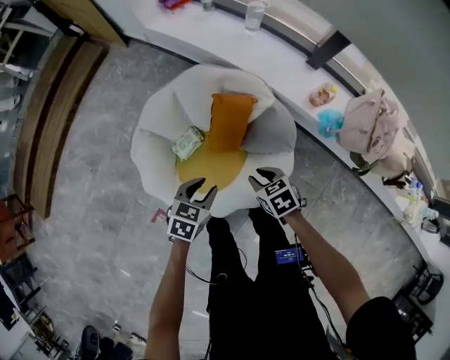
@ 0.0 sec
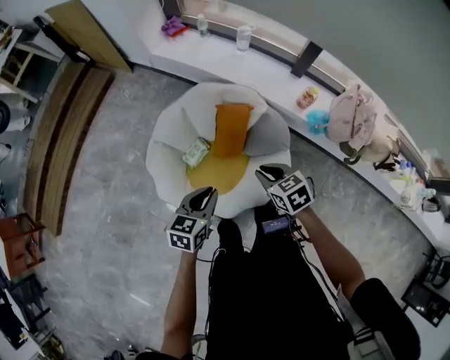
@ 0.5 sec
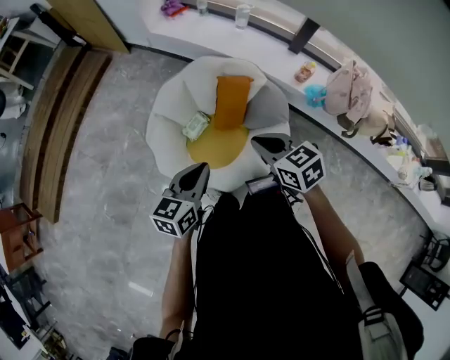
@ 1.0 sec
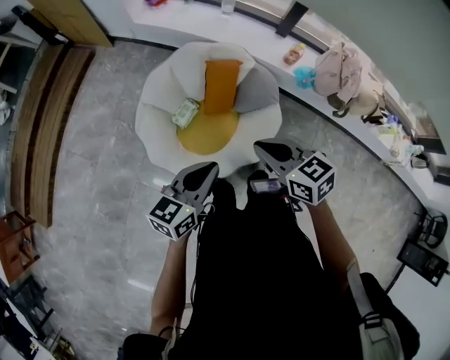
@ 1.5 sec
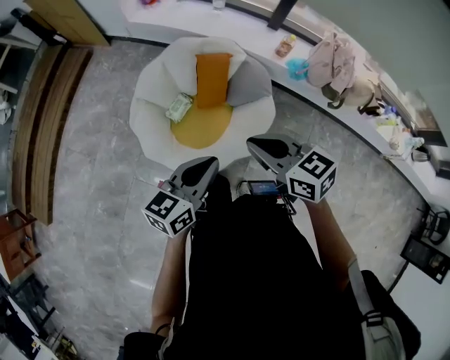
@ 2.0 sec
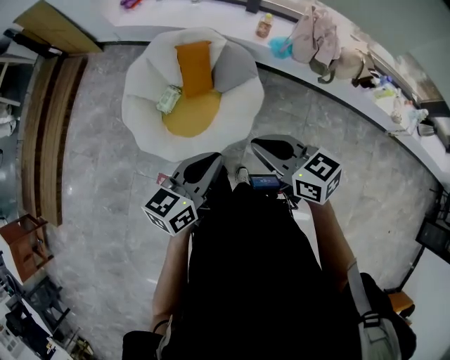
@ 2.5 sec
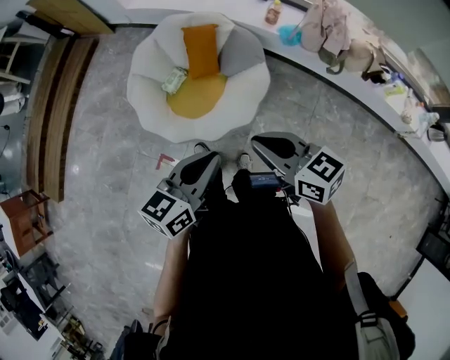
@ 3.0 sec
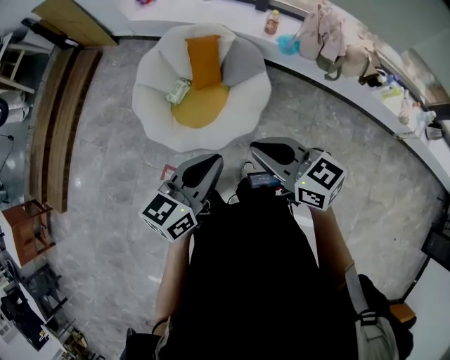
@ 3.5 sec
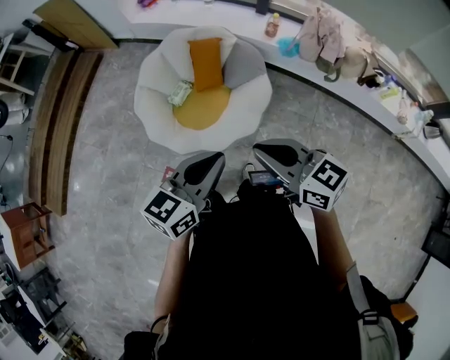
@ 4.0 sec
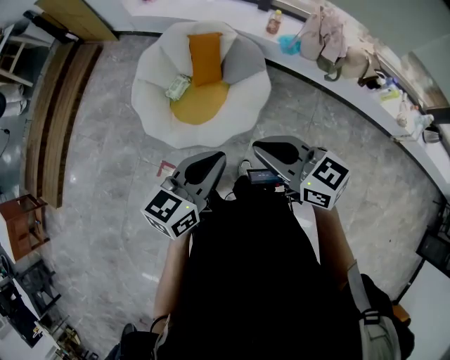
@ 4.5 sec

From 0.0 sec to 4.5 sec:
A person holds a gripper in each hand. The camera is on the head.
From 0.0 sec to 2.0 sec: The two grippers go roughly 35 cm upward and backward. The right gripper tilts its fingers about 30 degrees upward, and closes up; the left gripper tips its fingers upward by approximately 40 degrees, and closes its fingers.
From 2.0 sec to 4.5 sec: The two grippers go about 20 cm backward and to the right.

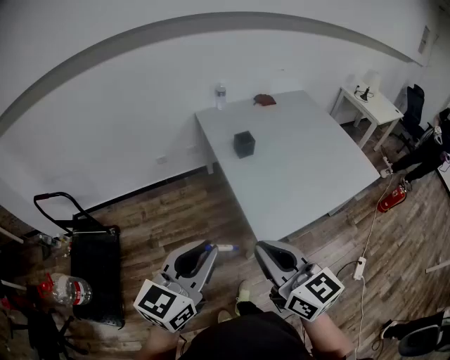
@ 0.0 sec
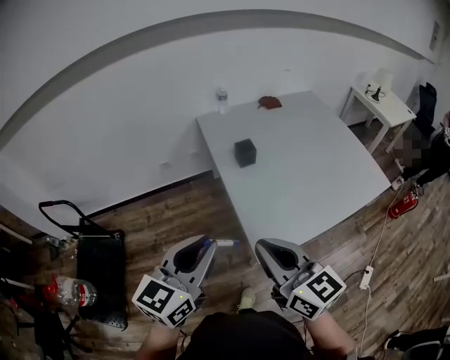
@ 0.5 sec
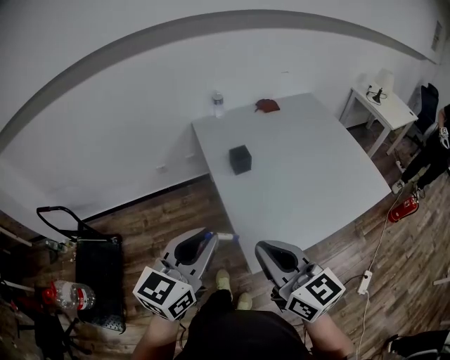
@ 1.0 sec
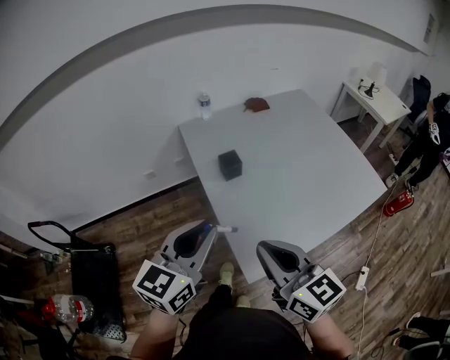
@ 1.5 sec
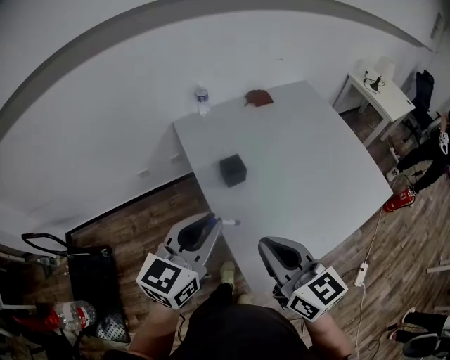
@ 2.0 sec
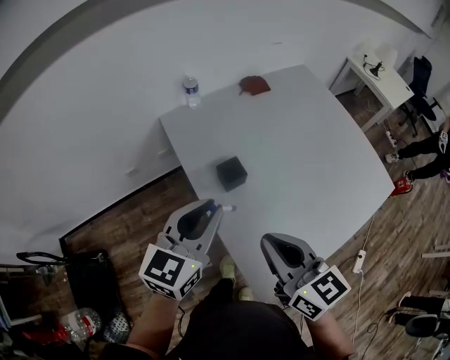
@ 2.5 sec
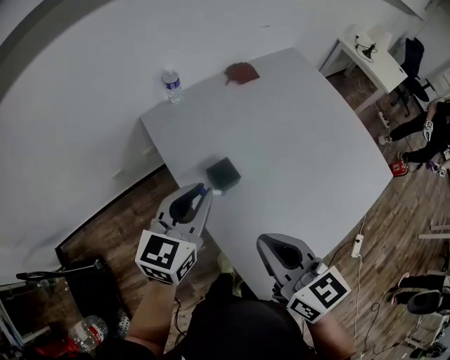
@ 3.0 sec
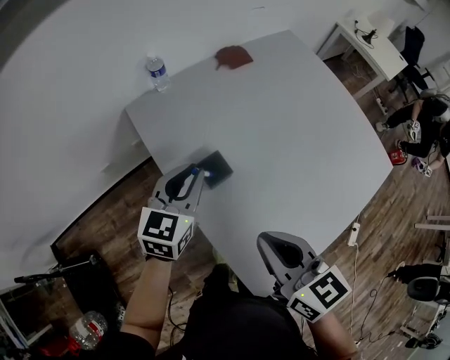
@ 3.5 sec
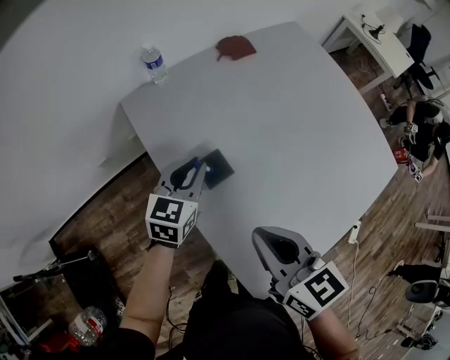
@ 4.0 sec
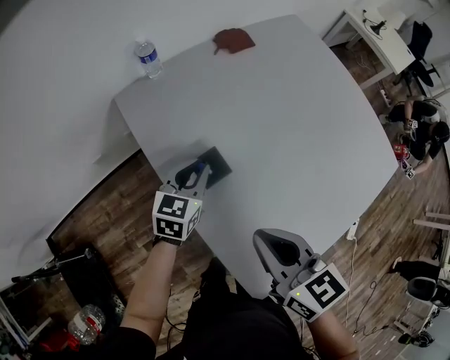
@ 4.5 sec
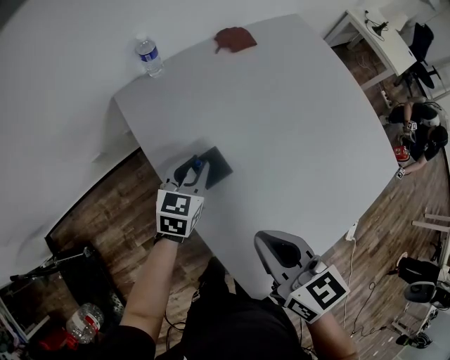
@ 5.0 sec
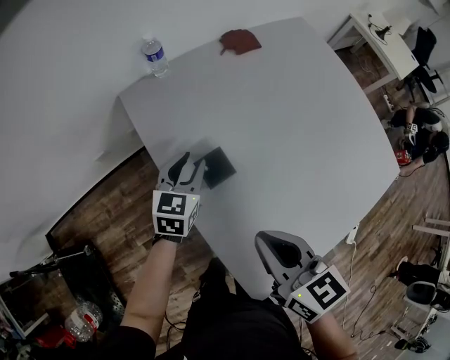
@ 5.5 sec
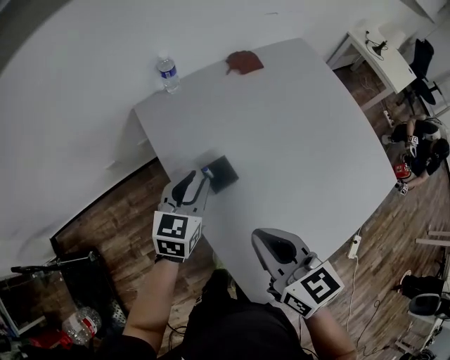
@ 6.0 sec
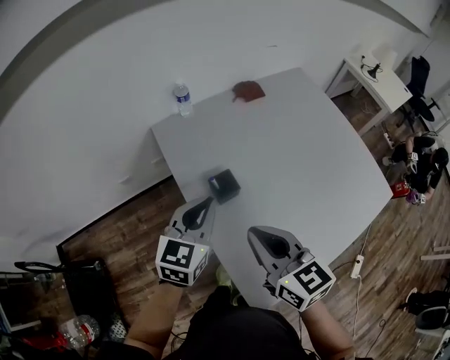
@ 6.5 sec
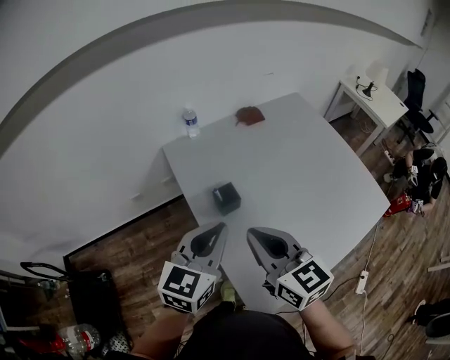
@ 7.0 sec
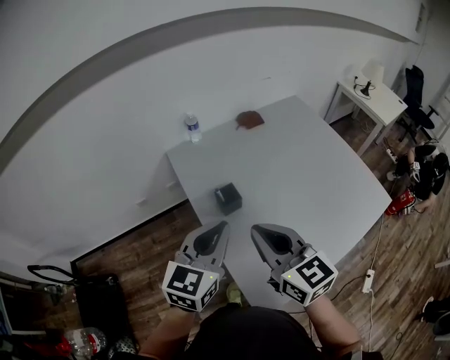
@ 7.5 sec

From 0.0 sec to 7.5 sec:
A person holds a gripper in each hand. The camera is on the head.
From 0.0 sec to 2.0 sec: Both grippers travel together forward, some 30 cm.
From 2.0 sec to 4.0 sec: The right gripper heads forward and downward, covering roughly 20 cm, while the left gripper heads forward and downward, covering about 35 cm.
From 4.0 sec to 5.5 sec: The grippers stay close to where they were, moving slightly.
From 5.5 sec to 7.5 sec: The right gripper moves upward and backward, about 15 cm, and swivels roughly 20 degrees; the left gripper shifts roughly 35 cm upward and backward, and closes up.

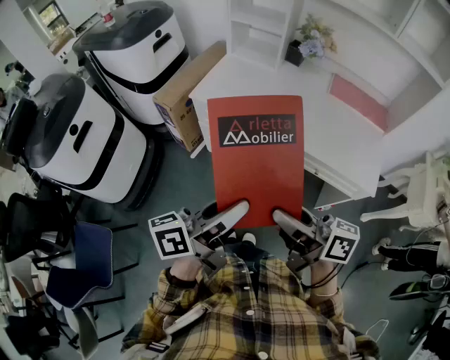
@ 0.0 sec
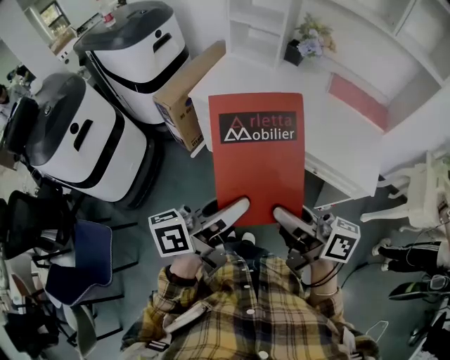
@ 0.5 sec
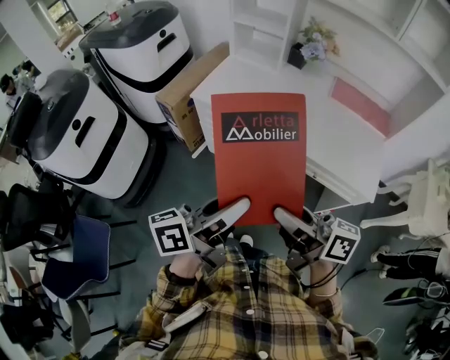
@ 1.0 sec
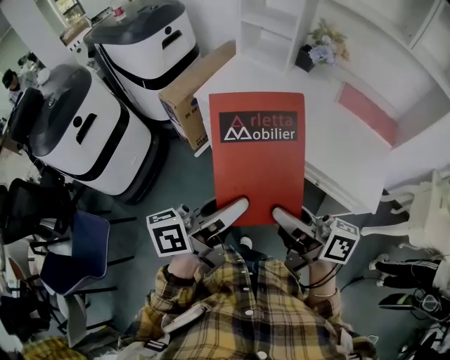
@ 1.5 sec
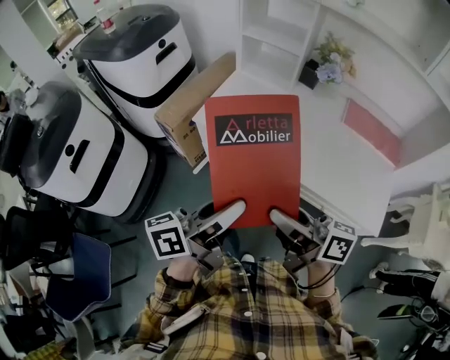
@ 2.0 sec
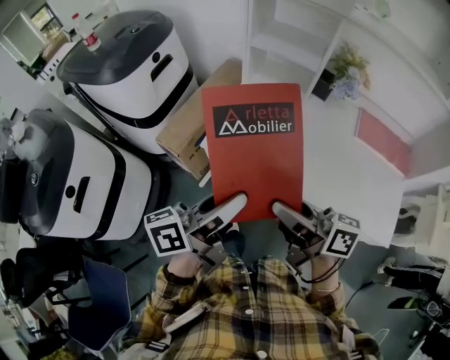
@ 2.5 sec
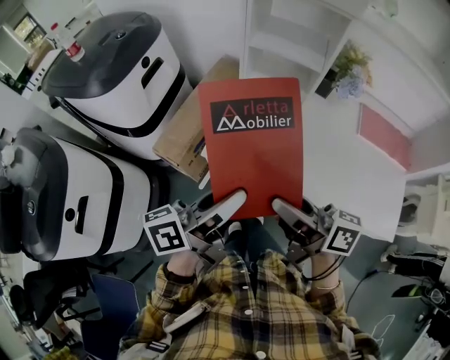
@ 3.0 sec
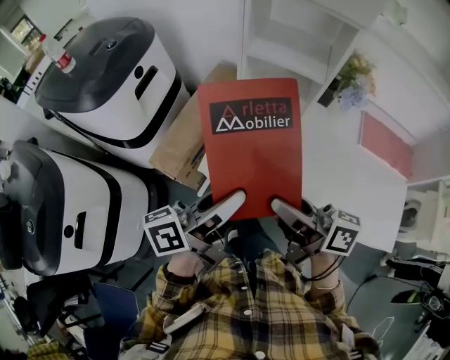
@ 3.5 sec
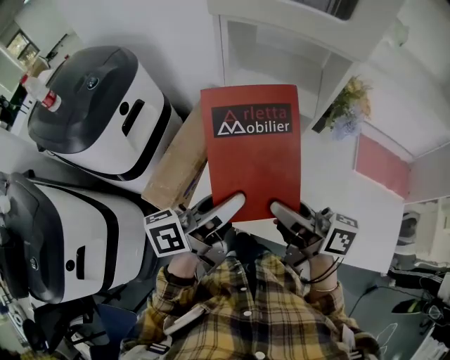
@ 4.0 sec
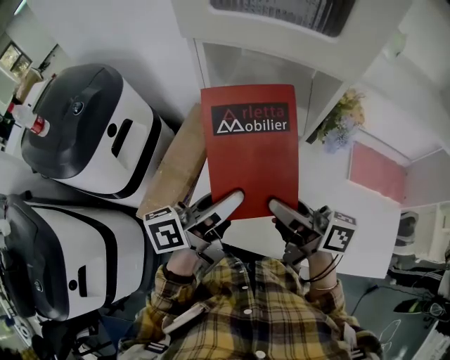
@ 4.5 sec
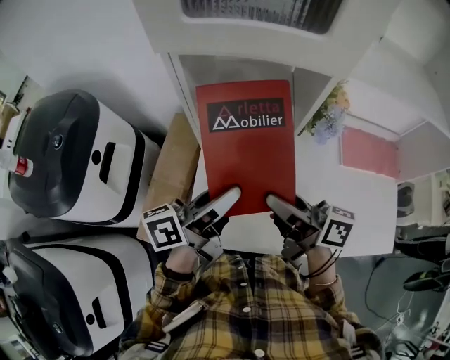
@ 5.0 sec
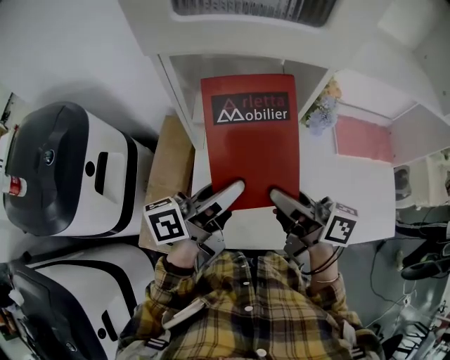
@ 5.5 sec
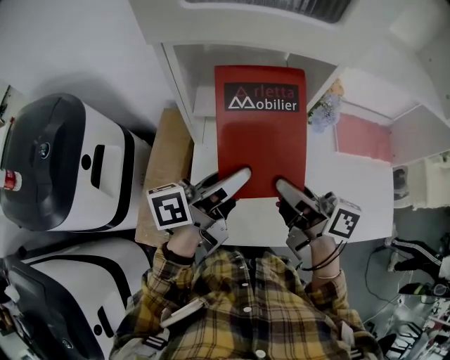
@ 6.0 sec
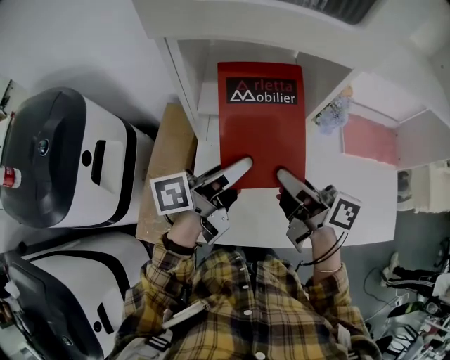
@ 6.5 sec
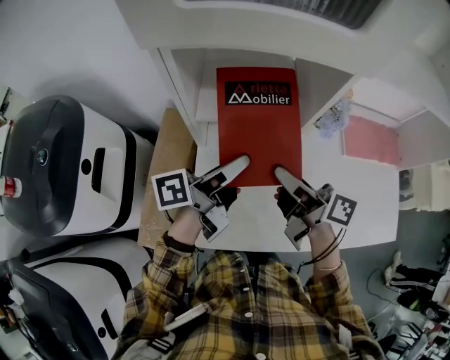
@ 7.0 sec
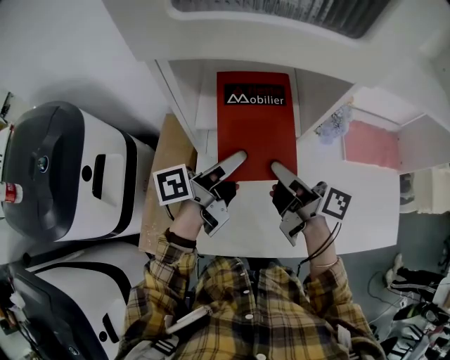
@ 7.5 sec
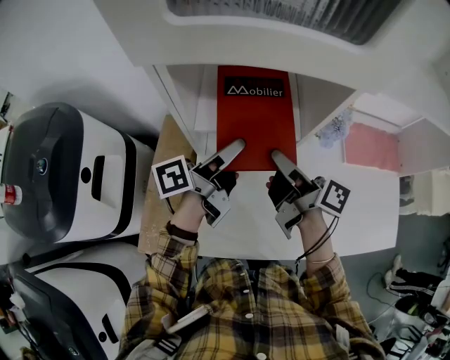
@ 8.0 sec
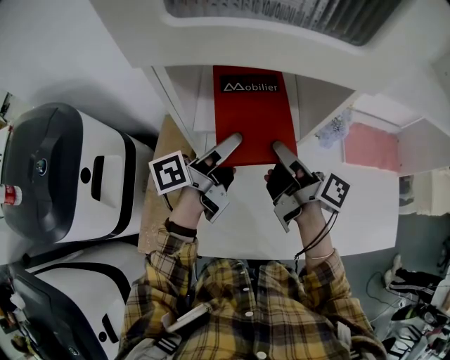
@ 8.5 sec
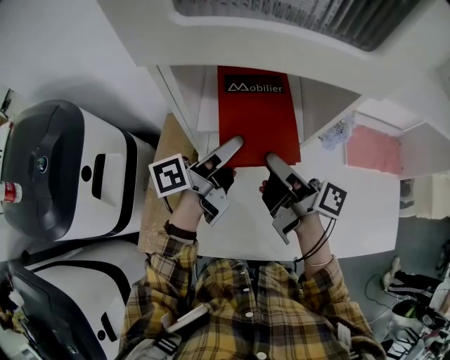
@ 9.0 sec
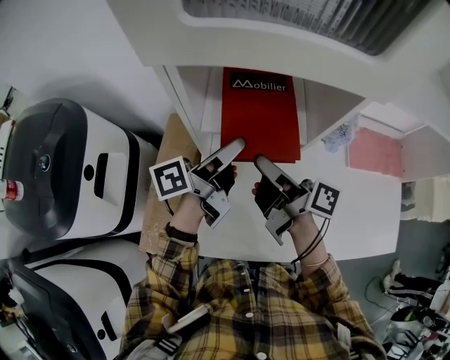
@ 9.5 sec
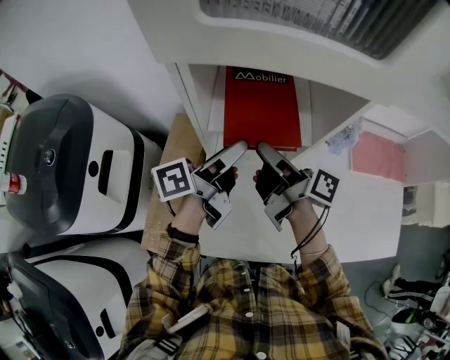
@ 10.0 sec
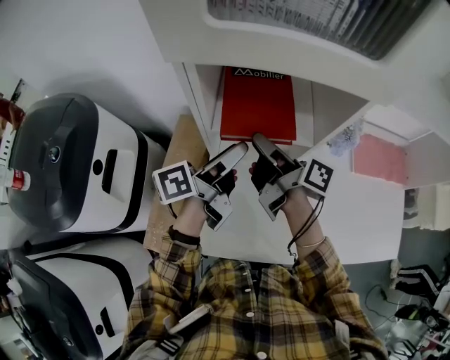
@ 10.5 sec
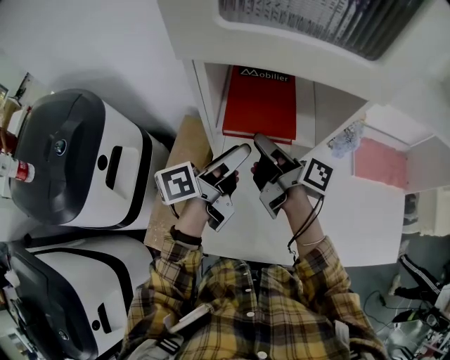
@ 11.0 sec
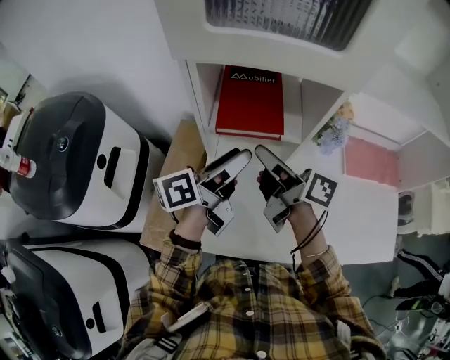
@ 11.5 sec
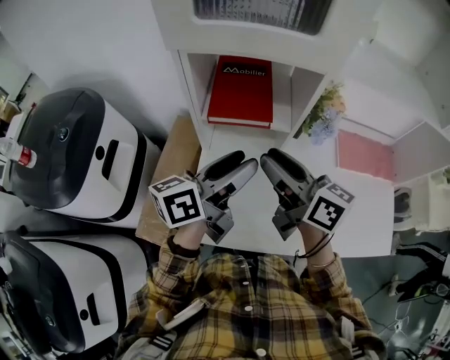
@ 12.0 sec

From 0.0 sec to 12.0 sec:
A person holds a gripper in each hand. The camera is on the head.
From 0.0 sec to 2.0 sec: The grippers both shift forward by roughly 15 cm.
From 2.0 sec to 4.0 sec: The left gripper moves forward and backward over about 20 cm, changing direction 2 times, while the right gripper goes forward and backward, approximately 20 cm each way, reversing 2 times.
From 4.0 sec to 6.0 sec: The two grippers go about 10 cm forward. The left gripper turns by approximately 20 degrees, while the right gripper swivels some 20 degrees.
From 6.0 sec to 8.0 sec: The grippers both shift forward by roughly 10 cm.
From 8.0 sec to 10.0 sec: The right gripper heads to the left, covering approximately 5 cm.
From 10.0 sec to 12.0 sec: The left gripper moves backward, upward and to the right, about 15 cm, and changes its angle by roughly 20 degrees, while the right gripper moves backward and upward, approximately 15 cm, and swivels about 40 degrees.

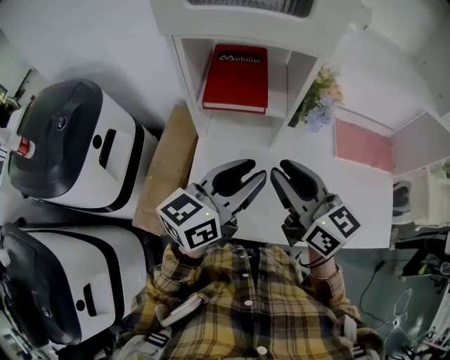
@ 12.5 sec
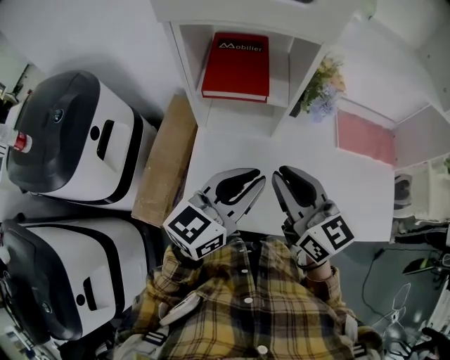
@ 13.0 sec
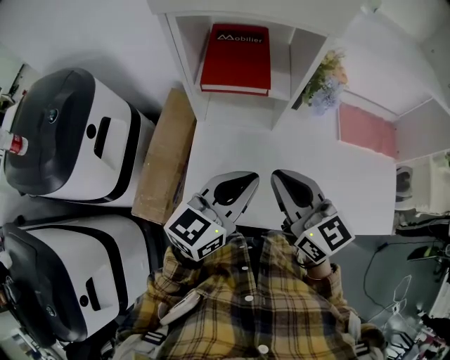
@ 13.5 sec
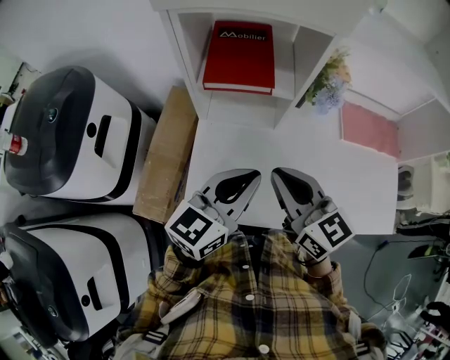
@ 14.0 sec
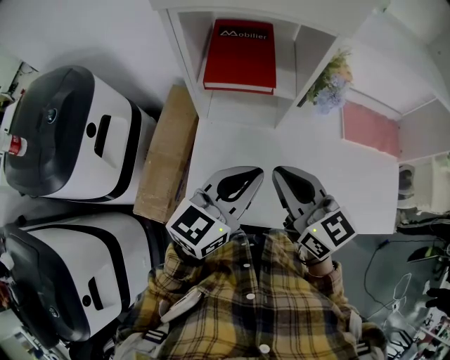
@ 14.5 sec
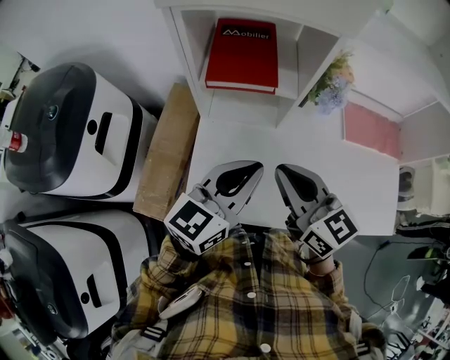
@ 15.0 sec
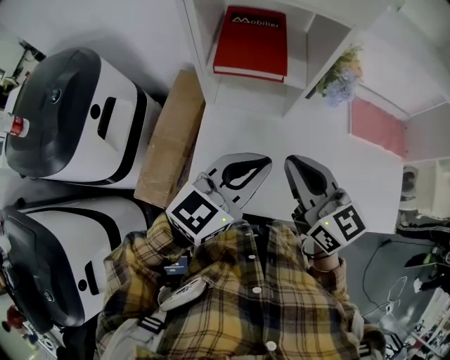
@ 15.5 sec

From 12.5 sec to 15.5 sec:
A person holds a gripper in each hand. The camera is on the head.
From 12.5 sec to 14.0 sec: The left gripper changes place by about 5 cm, and closes. Meanwhile the right gripper ends up roughly 5 cm from where it was, and closes its fingers.
From 14.0 sec to 15.5 sec: There are only small adjustments of the grippers.
